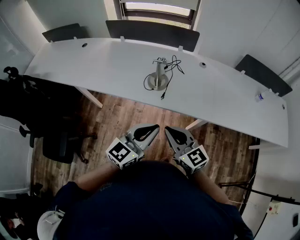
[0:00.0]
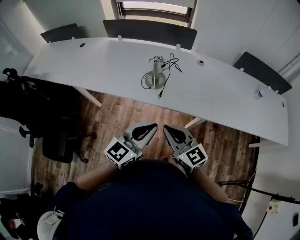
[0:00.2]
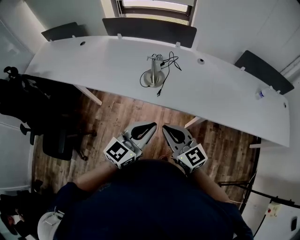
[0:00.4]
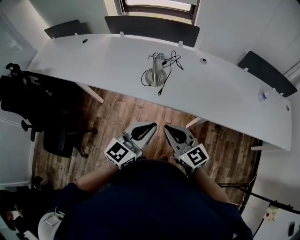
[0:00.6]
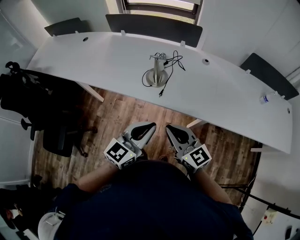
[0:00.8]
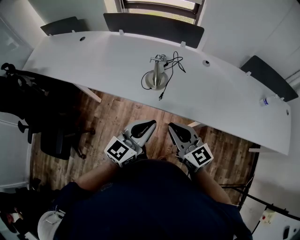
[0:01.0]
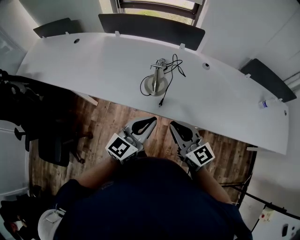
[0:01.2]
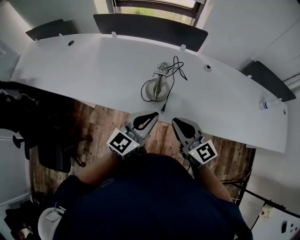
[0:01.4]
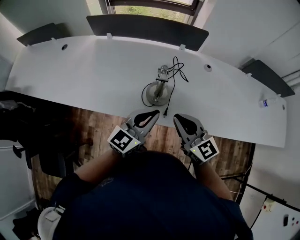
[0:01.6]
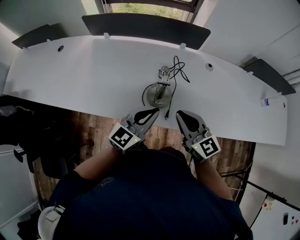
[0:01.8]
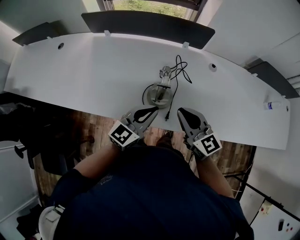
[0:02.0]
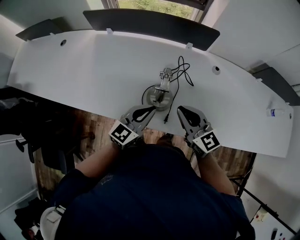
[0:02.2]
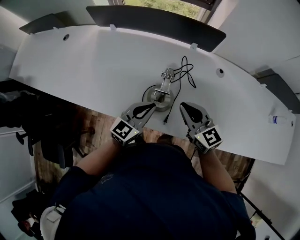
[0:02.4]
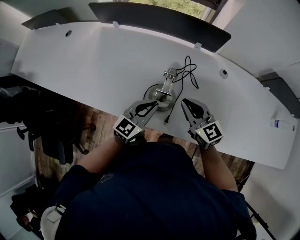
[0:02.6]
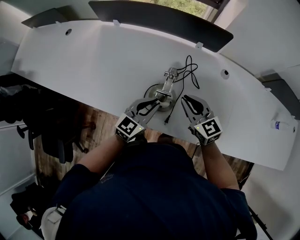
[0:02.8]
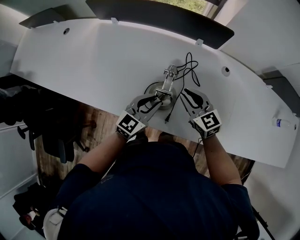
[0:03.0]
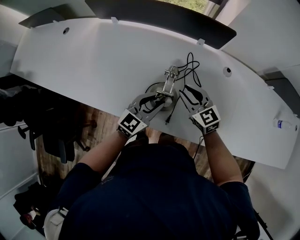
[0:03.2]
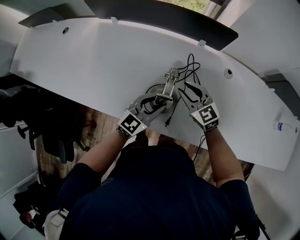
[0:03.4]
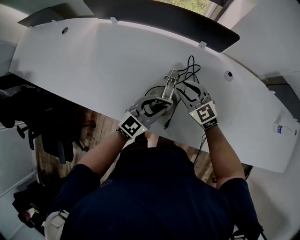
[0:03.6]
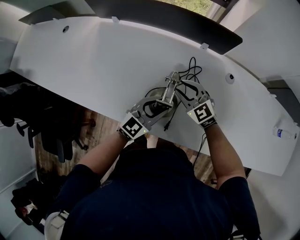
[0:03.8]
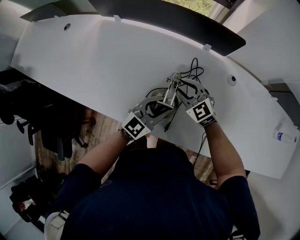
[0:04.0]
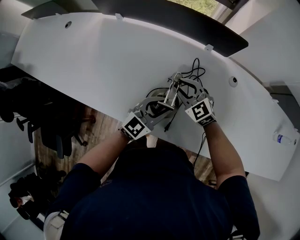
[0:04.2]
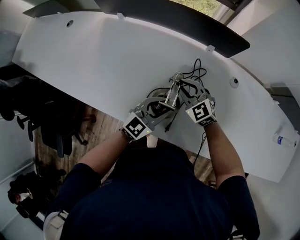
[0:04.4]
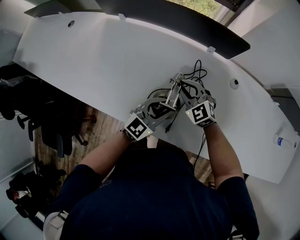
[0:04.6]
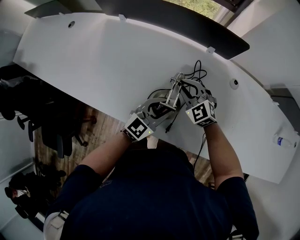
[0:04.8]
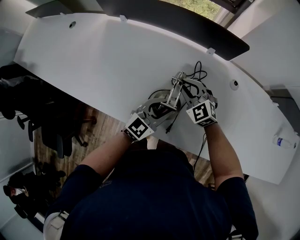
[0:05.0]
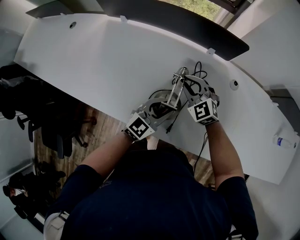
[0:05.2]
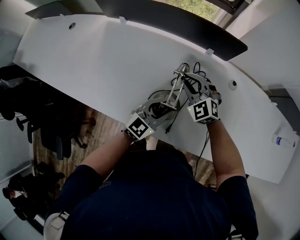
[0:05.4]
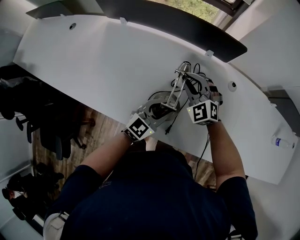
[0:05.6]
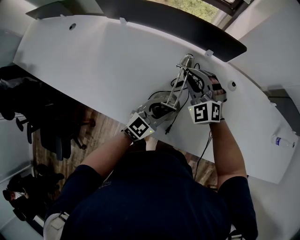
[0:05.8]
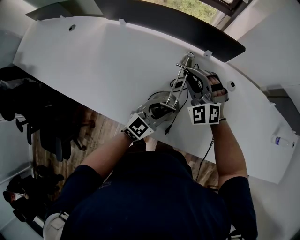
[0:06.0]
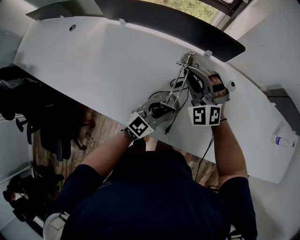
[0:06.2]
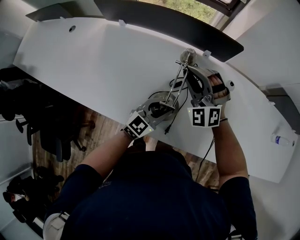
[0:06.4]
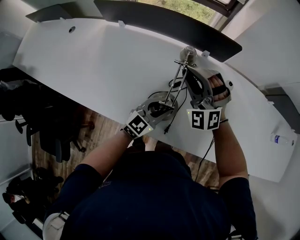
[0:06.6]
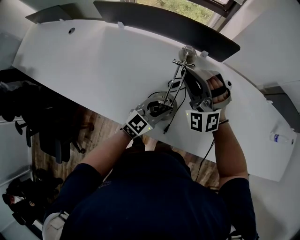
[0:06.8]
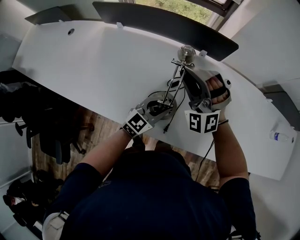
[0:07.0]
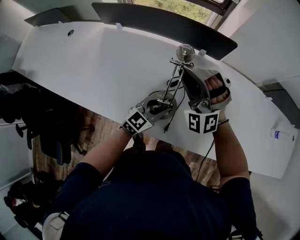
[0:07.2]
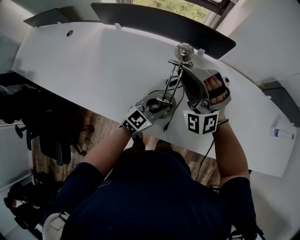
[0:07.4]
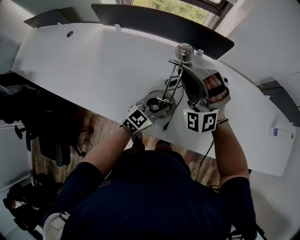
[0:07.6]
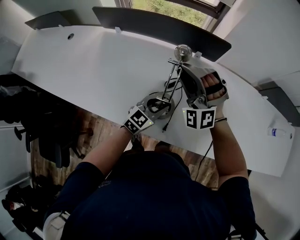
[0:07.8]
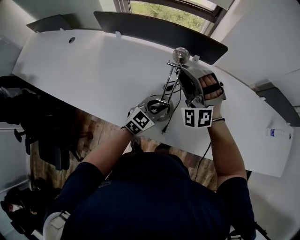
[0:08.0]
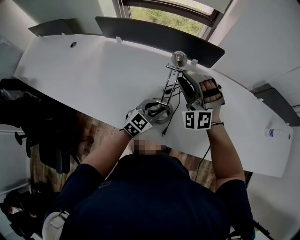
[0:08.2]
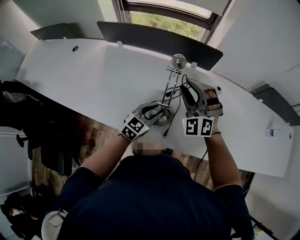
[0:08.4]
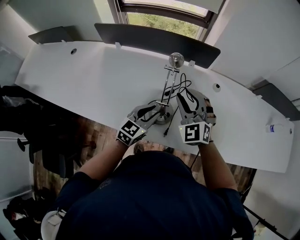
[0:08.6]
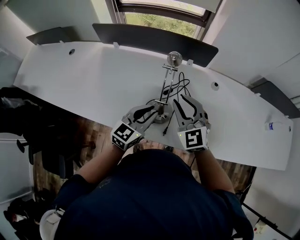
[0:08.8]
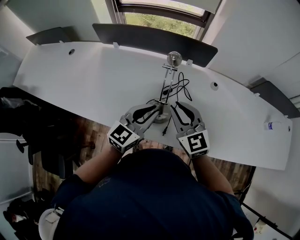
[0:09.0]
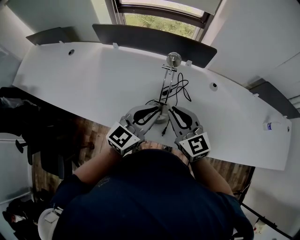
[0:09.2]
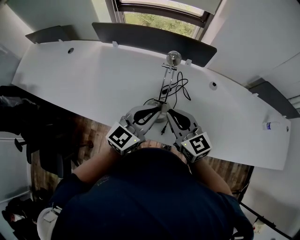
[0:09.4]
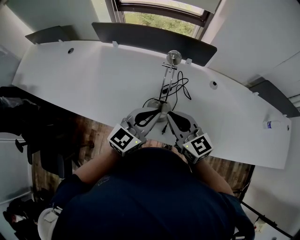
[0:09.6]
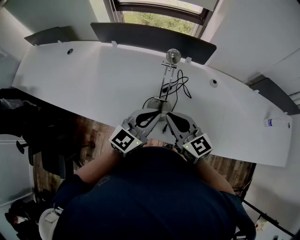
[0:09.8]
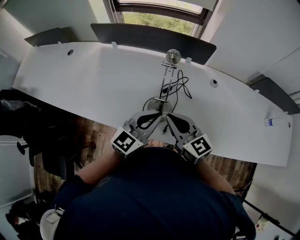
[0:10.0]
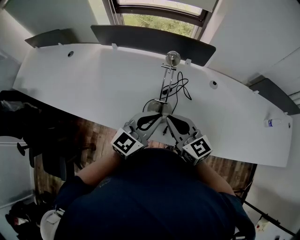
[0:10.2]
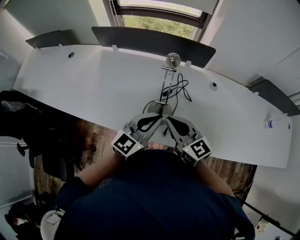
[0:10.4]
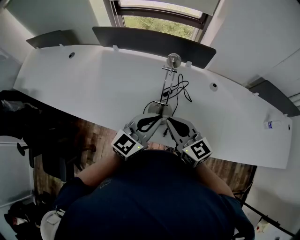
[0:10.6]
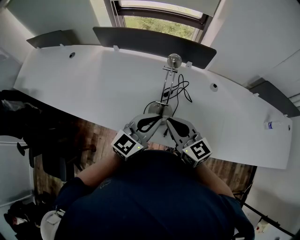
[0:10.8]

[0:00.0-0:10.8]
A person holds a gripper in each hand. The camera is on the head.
0:00.0 to 0:01.6: Both grippers travel together forward, about 25 cm.
0:01.6 to 0:03.0: The two grippers go about 20 cm forward and downward.
0:03.0 to 0:04.6: The right gripper is displaced forward and downward by roughly 10 cm, and turns by some 30 degrees.
0:04.6 to 0:06.2: The right gripper travels upward by some 10 cm, and changes its angle by roughly 40 degrees.
0:06.2 to 0:07.8: The right gripper moves upward, roughly 5 cm.
0:07.8 to 0:09.2: The left gripper is displaced upward by roughly 15 cm, and closes. Meanwhile the right gripper goes approximately 15 cm backward, and twists about 80 degrees clockwise, seen from behind.
0:09.2 to 0:10.8: The grippers stay close to where they were, moving slightly.

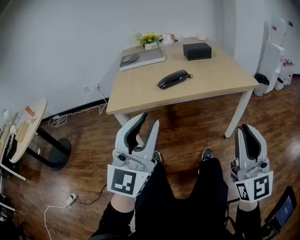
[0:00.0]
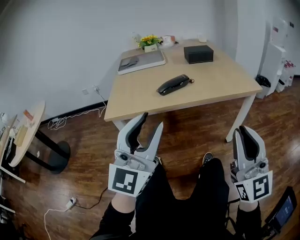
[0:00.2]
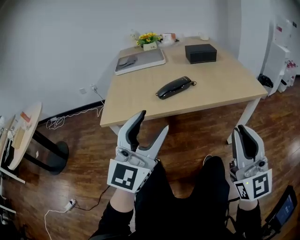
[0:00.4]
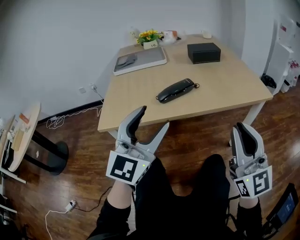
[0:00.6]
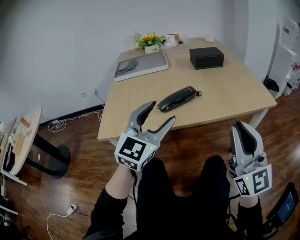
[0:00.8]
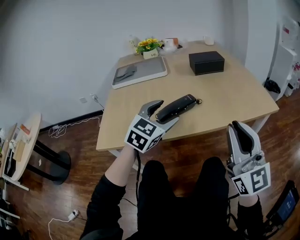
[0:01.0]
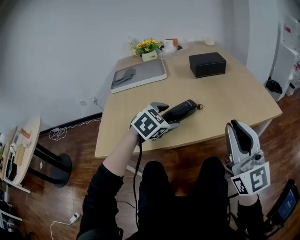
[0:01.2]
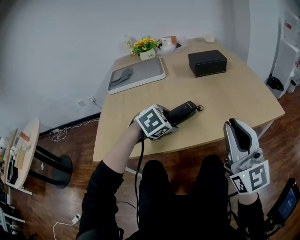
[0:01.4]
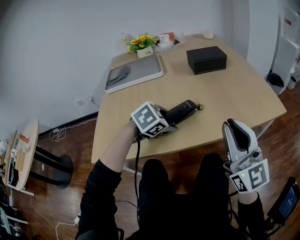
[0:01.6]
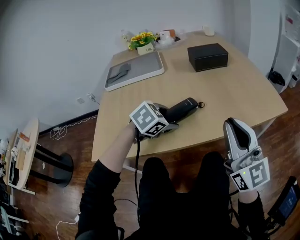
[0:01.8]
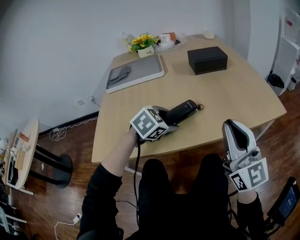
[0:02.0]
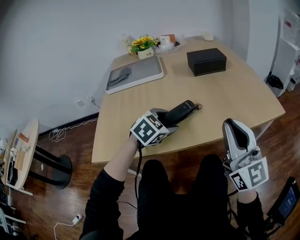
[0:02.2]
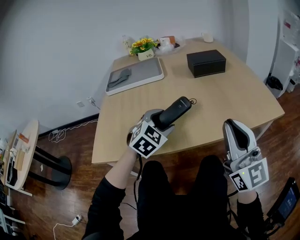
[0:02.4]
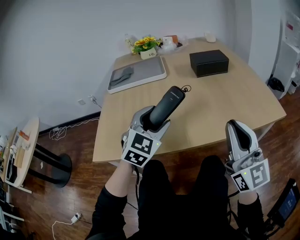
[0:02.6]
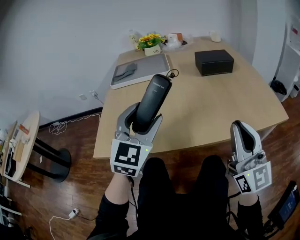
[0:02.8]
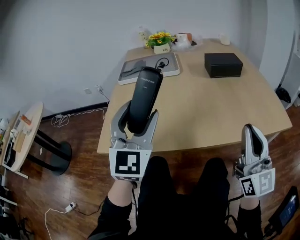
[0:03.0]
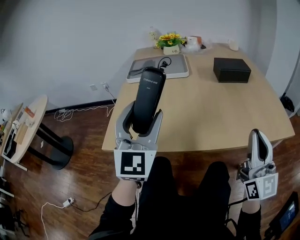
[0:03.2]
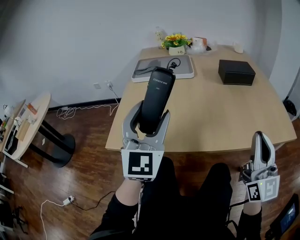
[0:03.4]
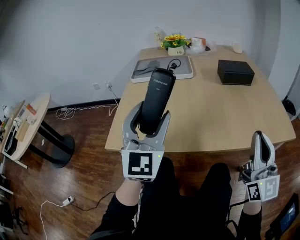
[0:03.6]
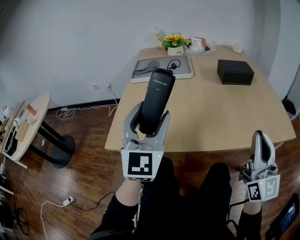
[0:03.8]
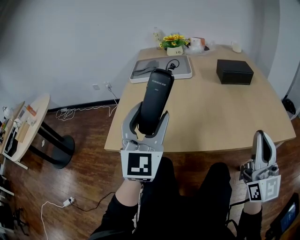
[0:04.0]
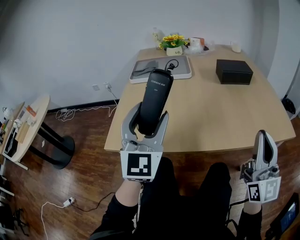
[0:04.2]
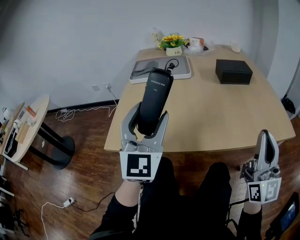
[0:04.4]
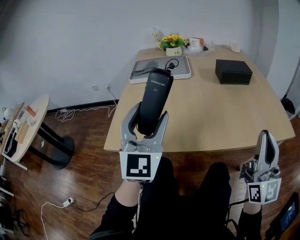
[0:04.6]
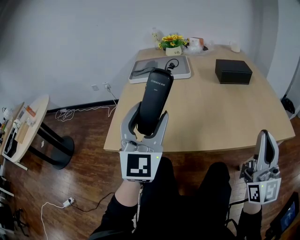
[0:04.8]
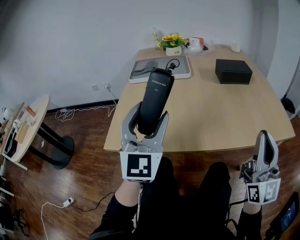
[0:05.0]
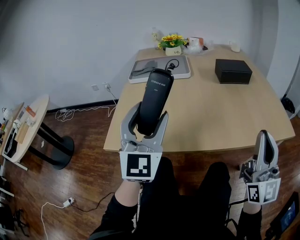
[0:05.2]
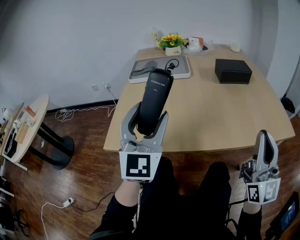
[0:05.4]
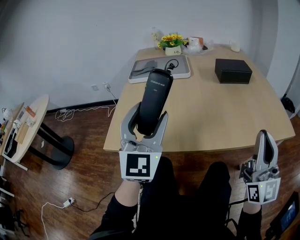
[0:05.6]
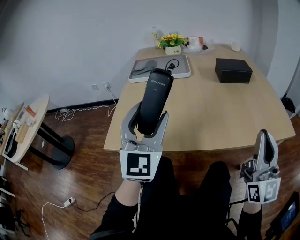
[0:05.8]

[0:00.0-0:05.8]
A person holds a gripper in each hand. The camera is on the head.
0:00.0 to 0:01.4: The right gripper shifts some 30 cm forward. The left gripper moves forward and downward, approximately 50 cm, angles its fingers downward, by some 80 degrees, and opens its fingers.
0:01.4 to 0:02.8: The left gripper heads upward and to the left, covering about 15 cm, and tilts its fingers roughly 50 degrees upward.
0:02.8 to 0:04.4: The left gripper moves to the left, some 5 cm, and turns by about 20 degrees.
0:04.4 to 0:05.8: Neither gripper changes place.

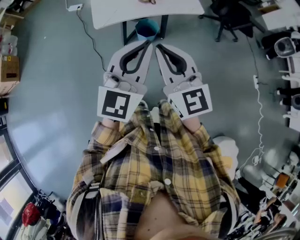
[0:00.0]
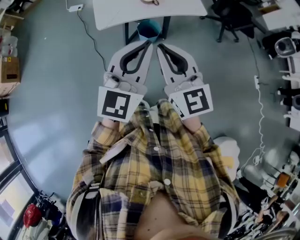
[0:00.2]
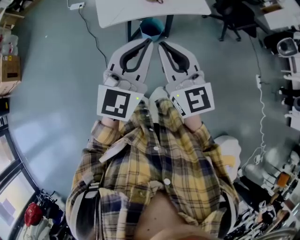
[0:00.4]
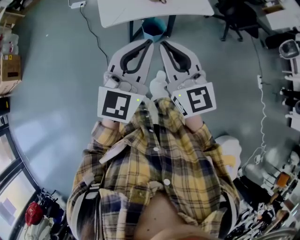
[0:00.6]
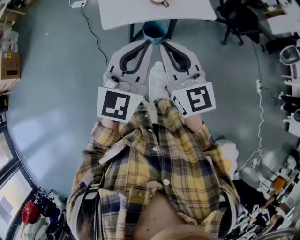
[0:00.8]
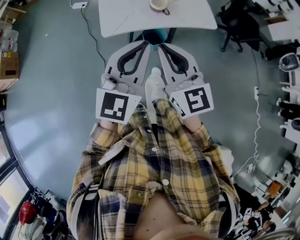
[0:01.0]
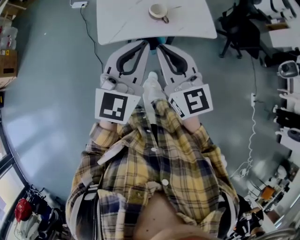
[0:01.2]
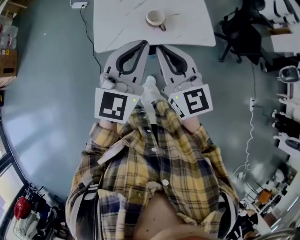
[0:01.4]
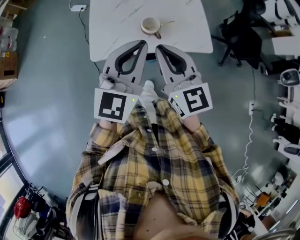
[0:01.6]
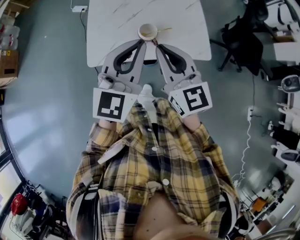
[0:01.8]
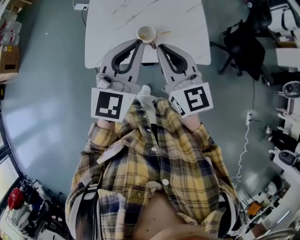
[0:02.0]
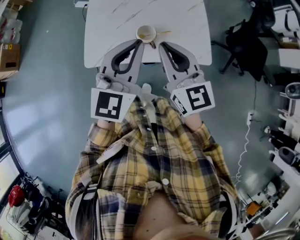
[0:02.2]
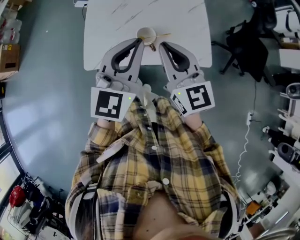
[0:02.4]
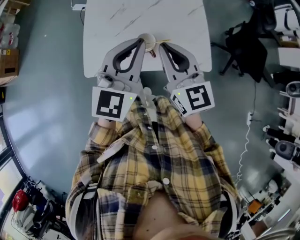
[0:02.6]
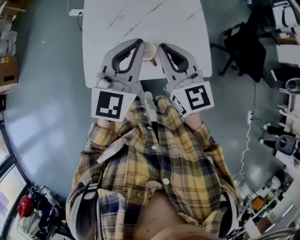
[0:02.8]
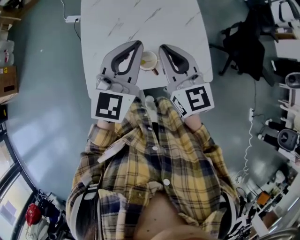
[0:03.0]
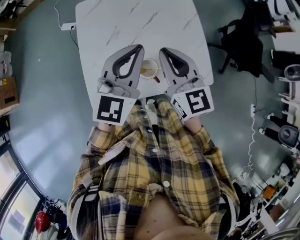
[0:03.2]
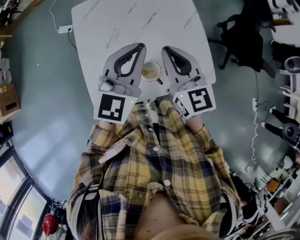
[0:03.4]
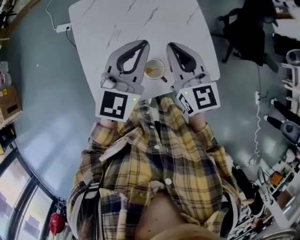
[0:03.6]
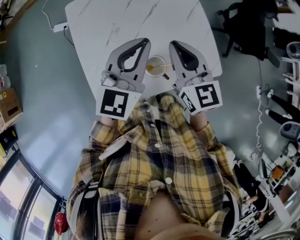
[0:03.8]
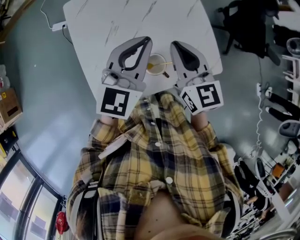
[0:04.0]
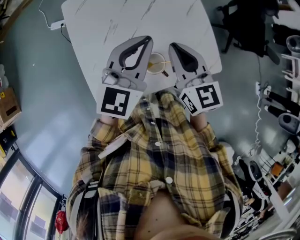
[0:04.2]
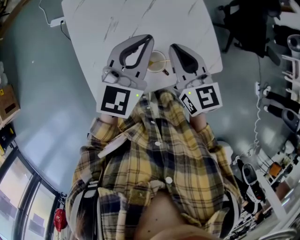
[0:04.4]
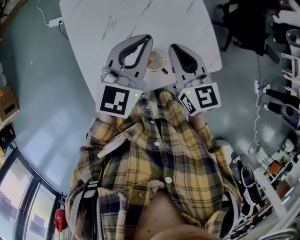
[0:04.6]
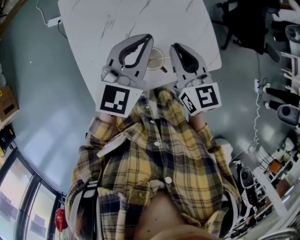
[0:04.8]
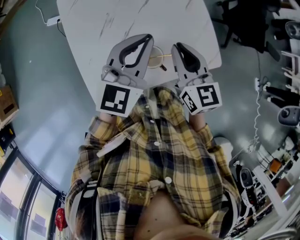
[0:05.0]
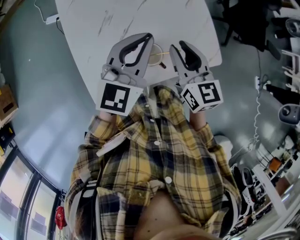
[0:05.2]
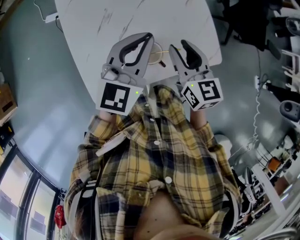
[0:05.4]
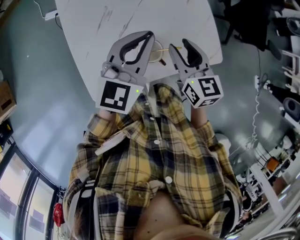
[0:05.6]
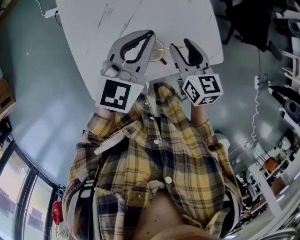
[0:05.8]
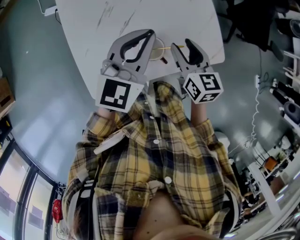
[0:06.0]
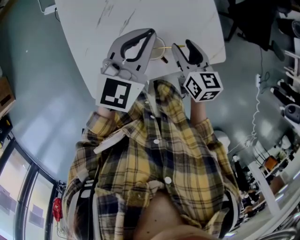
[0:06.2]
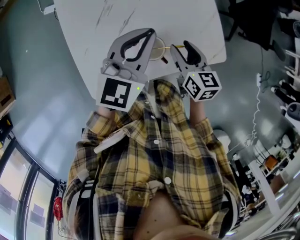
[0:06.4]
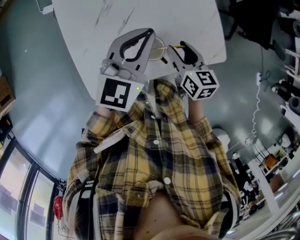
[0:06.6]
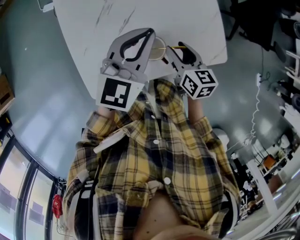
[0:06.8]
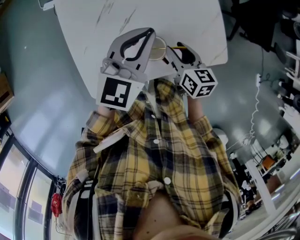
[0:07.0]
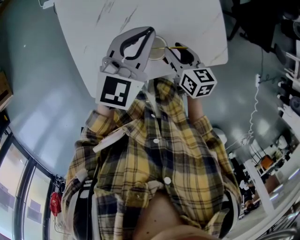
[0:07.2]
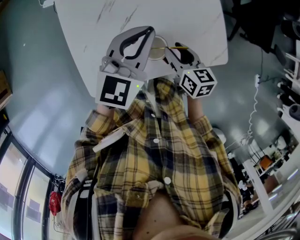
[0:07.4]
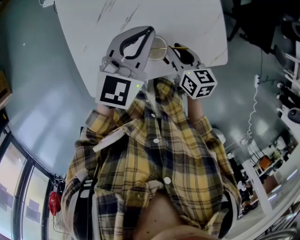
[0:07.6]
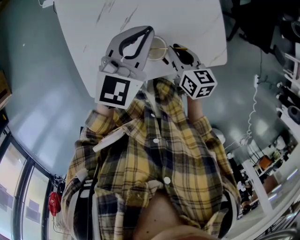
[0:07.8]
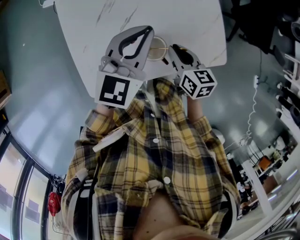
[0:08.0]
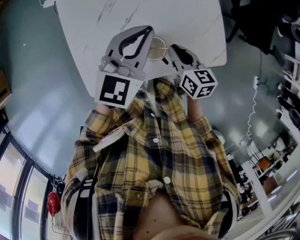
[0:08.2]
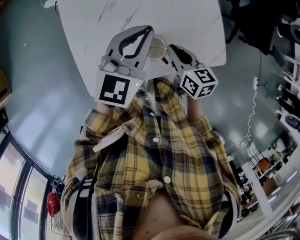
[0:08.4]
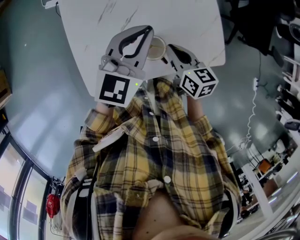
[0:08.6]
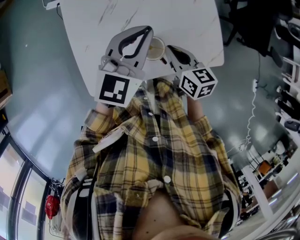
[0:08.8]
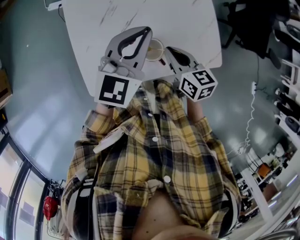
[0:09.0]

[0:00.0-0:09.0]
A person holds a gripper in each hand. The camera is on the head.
0:00.0 to 0:01.6: Both grippers move forward, approximately 25 cm.
0:01.6 to 0:03.0: Both grippers travel together forward, some 20 cm.
0:03.0 to 0:04.4: The left gripper is displaced forward and downward by roughly 10 cm. Meanwhile the right gripper is displaced downward and forward by some 10 cm.
0:04.4 to 0:06.0: The right gripper is displaced downward and to the right by roughly 10 cm, and opens up.
0:06.0 to 0:07.6: The right gripper is displaced downward by roughly 10 cm.
0:07.6 to 0:09.0: The right gripper moves upward, about 5 cm, and closes its fingers.
